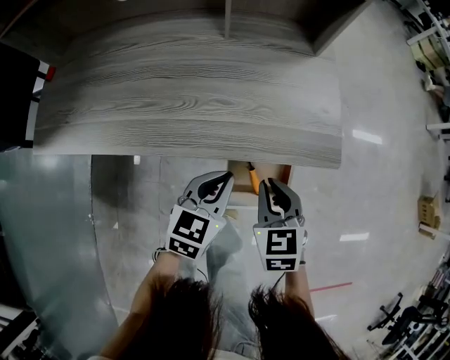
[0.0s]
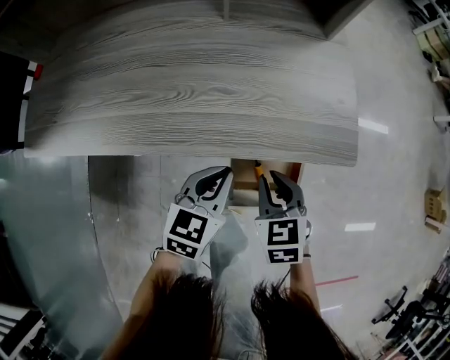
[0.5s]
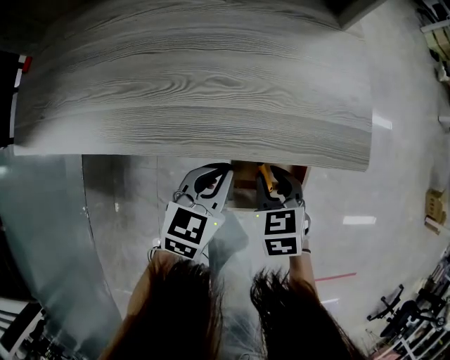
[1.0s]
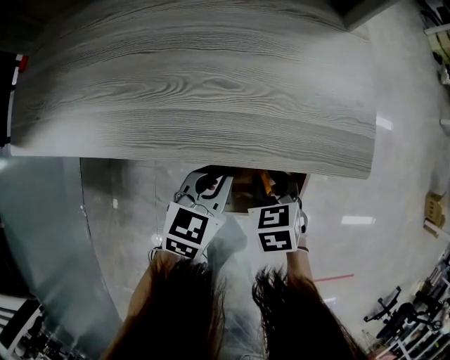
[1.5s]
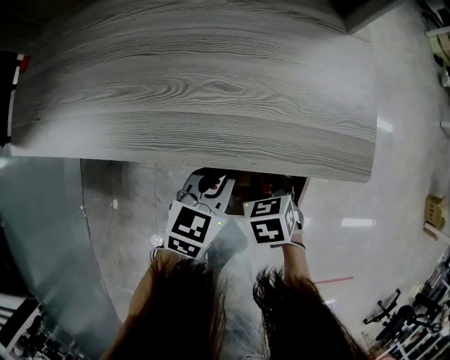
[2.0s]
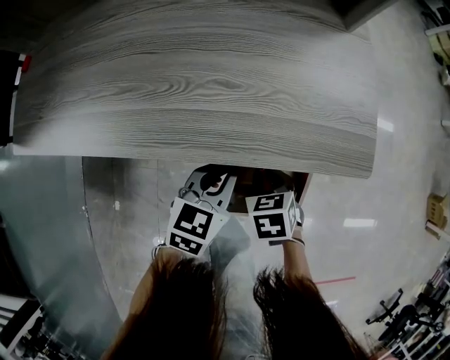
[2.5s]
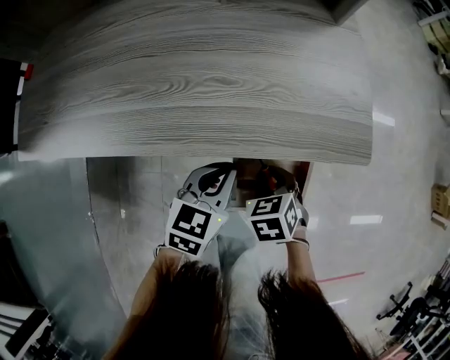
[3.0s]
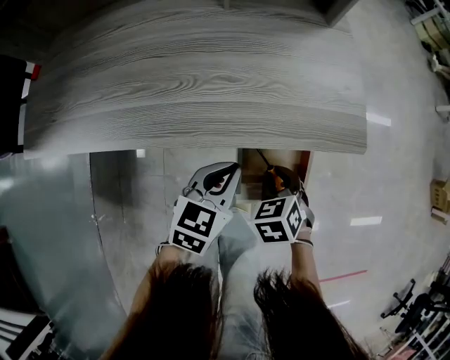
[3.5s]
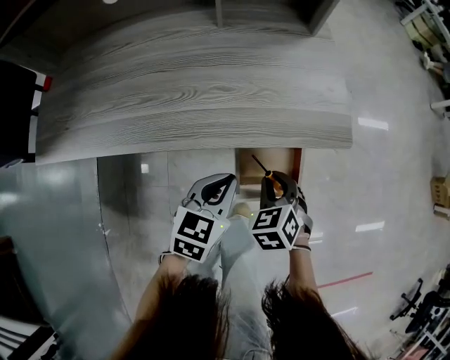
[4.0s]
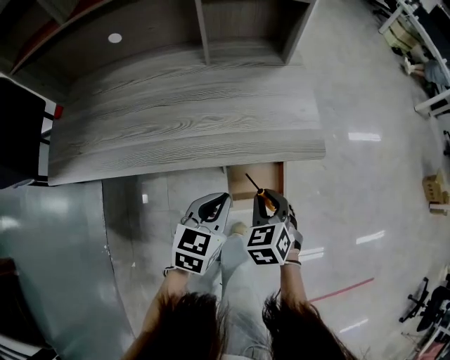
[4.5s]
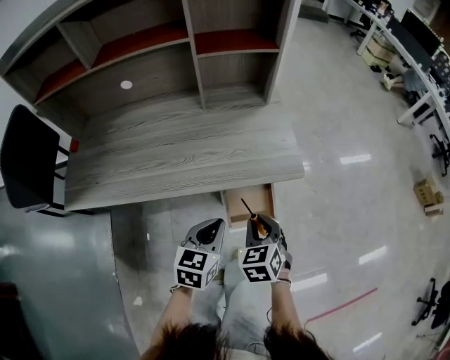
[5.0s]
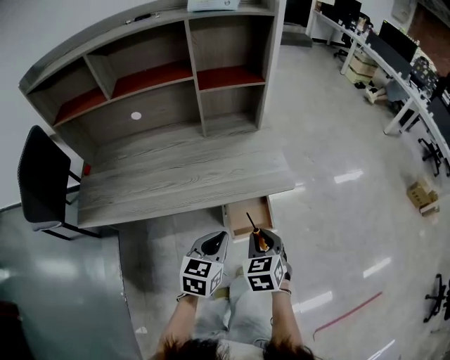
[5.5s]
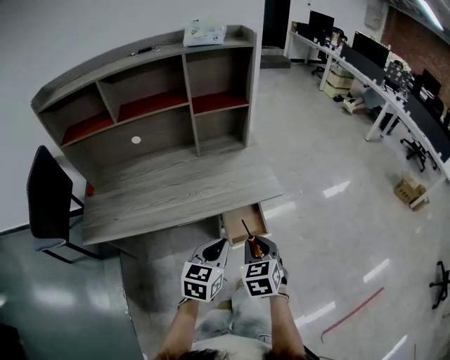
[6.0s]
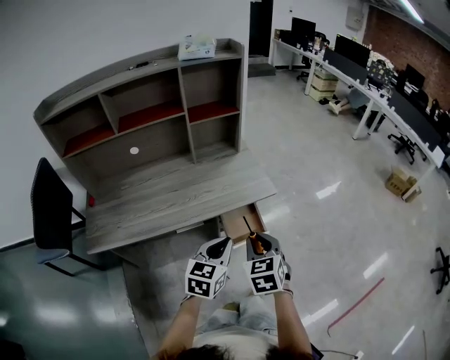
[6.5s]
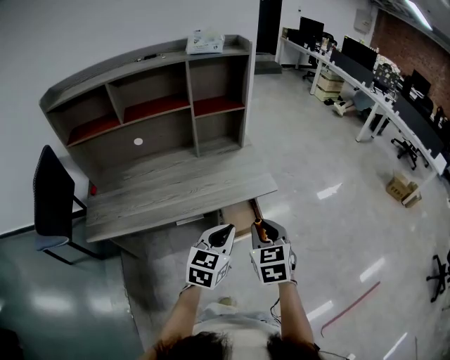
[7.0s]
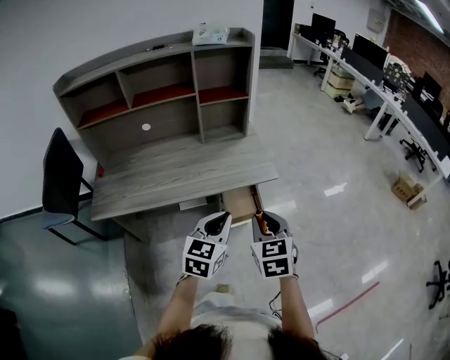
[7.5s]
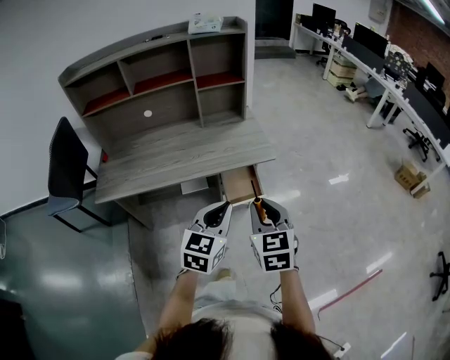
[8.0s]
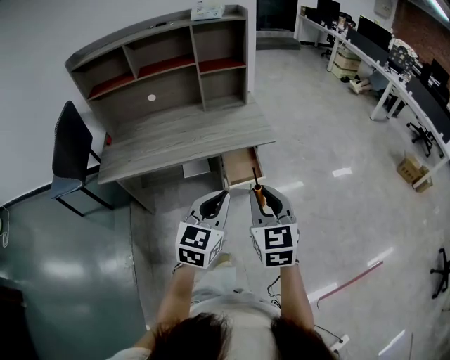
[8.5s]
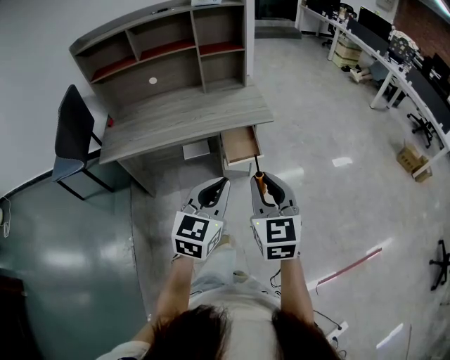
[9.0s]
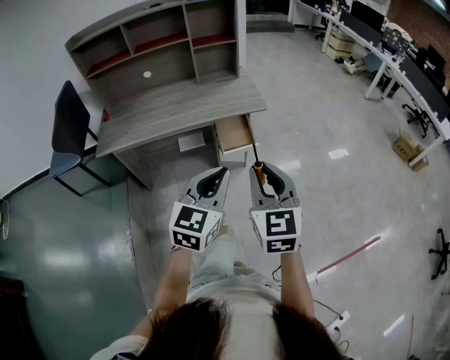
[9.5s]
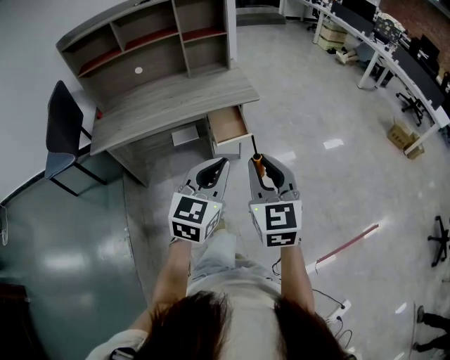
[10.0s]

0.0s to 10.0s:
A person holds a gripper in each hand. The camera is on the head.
0.0s to 2.0s: The left gripper moves downward, approximately 10 cm. The right gripper shifts roughly 15 cm downward, and swivels about 30 degrees.
2.0s to 4.0s: The right gripper heads upward, covering about 10 cm; the left gripper goes approximately 10 cm upward and backward.
4.0s to 6.0s: Both grippers travel together upward and backward, some 30 cm. The right gripper turns by some 30 degrees.
6.0s to 8.0s: The right gripper moves upward, backward and to the right, approximately 20 cm. The left gripper shifts some 15 cm backward, upward and to the right.
8.0s to 10.0s: Both grippers move backward, roughly 15 cm.

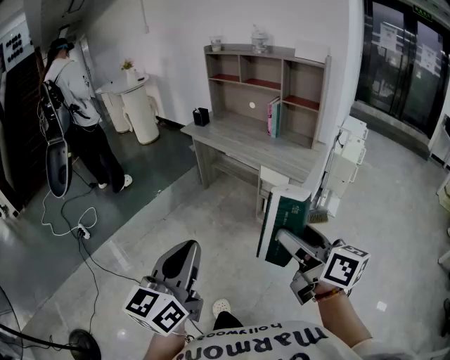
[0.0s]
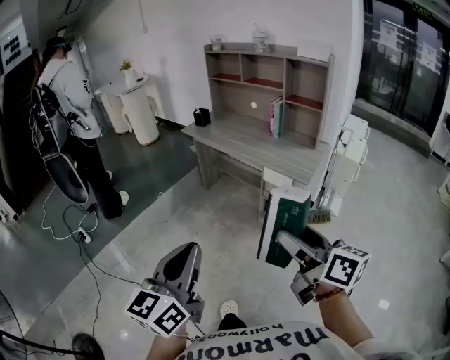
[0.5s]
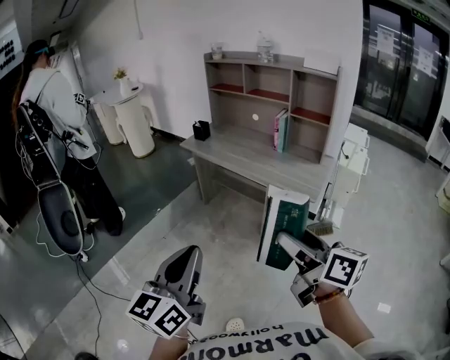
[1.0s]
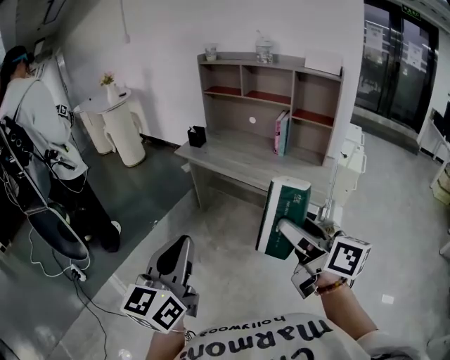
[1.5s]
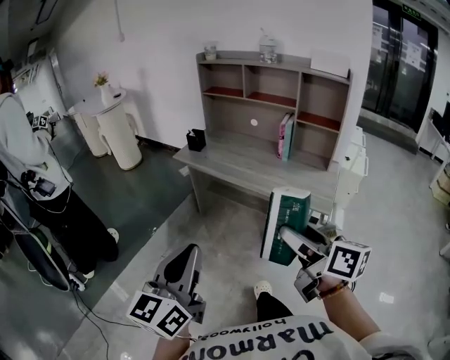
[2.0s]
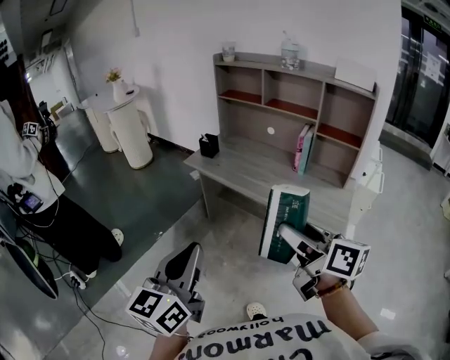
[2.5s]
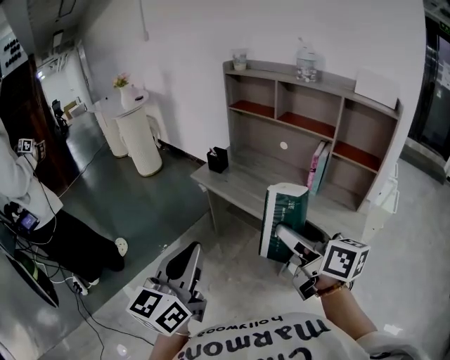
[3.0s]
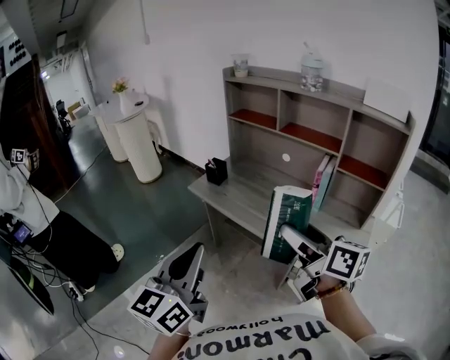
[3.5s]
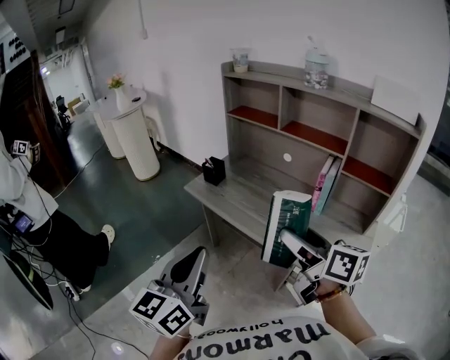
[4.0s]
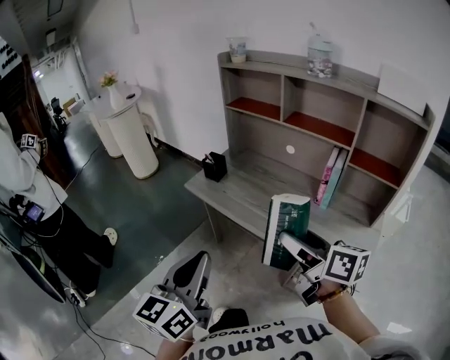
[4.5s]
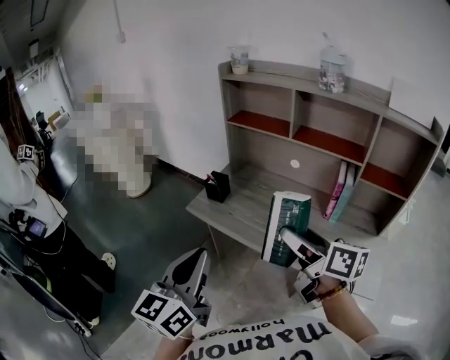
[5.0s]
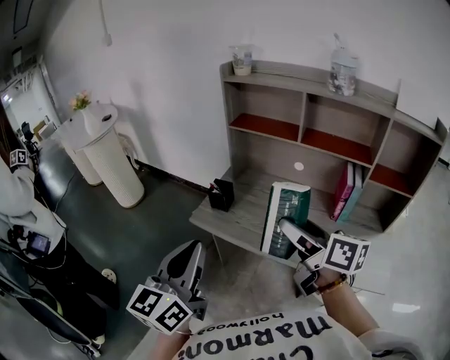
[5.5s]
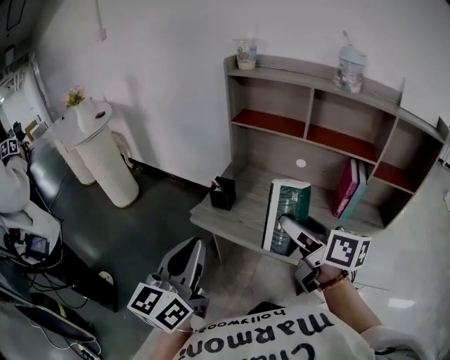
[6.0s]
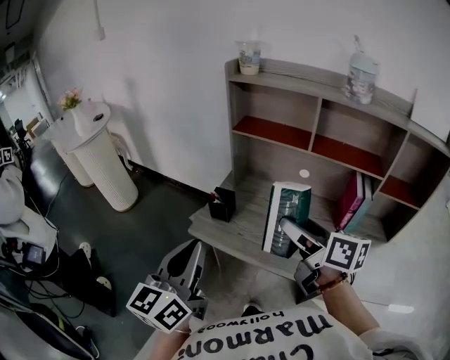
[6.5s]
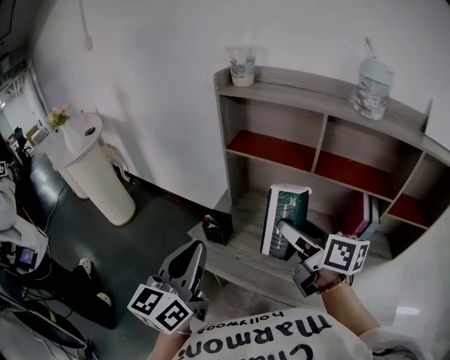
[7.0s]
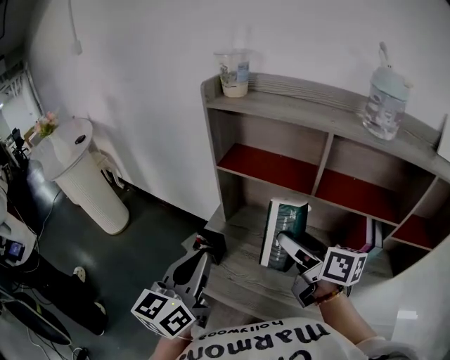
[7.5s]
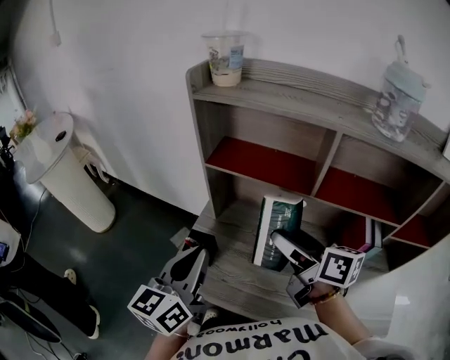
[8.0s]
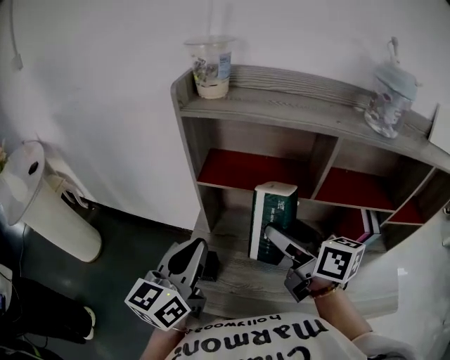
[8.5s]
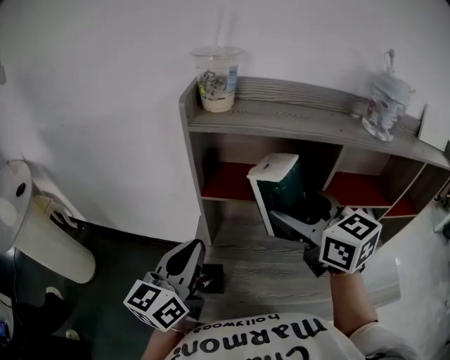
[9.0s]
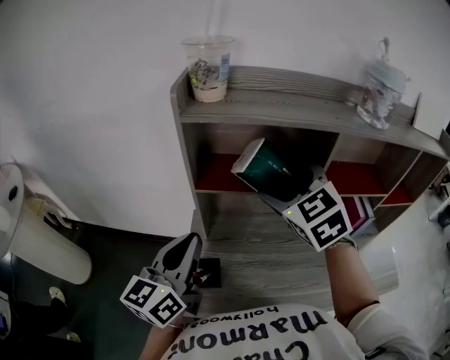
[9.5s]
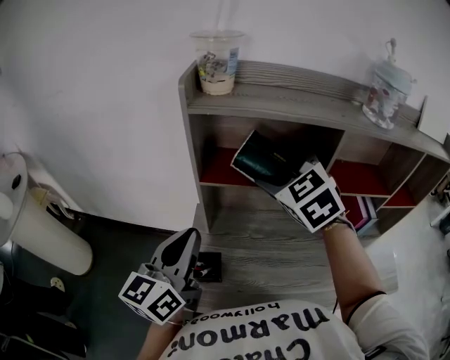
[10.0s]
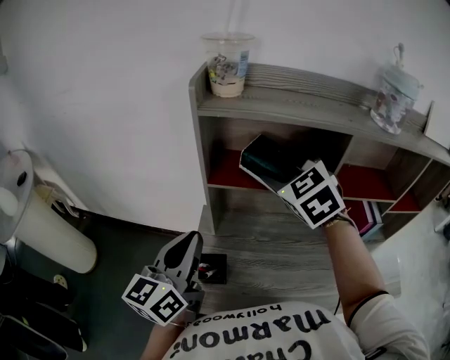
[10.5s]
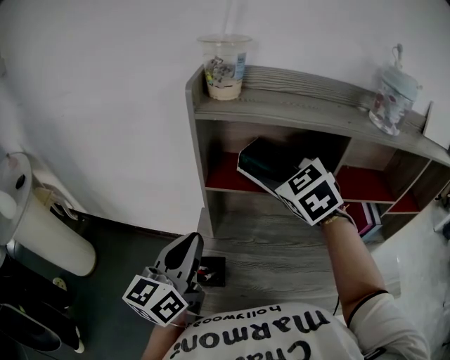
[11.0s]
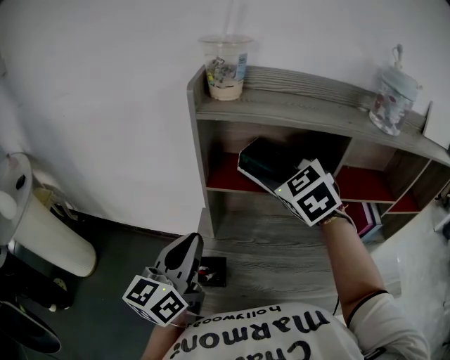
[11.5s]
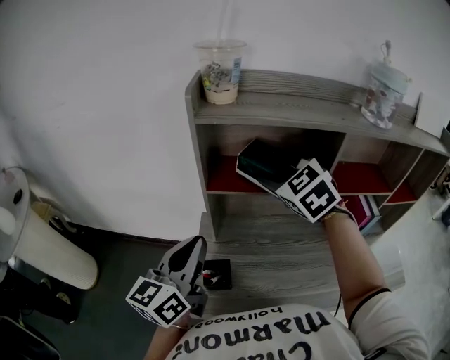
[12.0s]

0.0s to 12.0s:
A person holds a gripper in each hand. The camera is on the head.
0.0s to 2.0s: The grippers both shift forward and to the left by about 30 cm.
2.0s to 4.0s: The two grippers go some 30 cm forward.
4.0s to 6.0s: Both grippers move forward and to the left, roughly 25 cm.
6.0s to 8.0s: Both grippers move forward, about 25 cm.
8.0s to 10.0s: The left gripper changes place by roughly 10 cm. Meanwhile the right gripper moves about 15 cm, and twists some 70 degrees counterclockwise, seen from behind.
10.0s to 12.0s: The grippers move only a little.

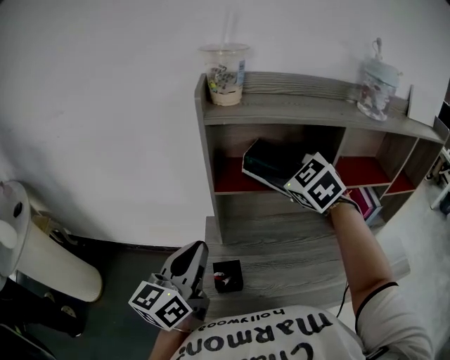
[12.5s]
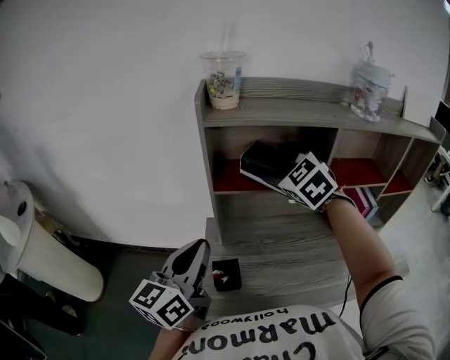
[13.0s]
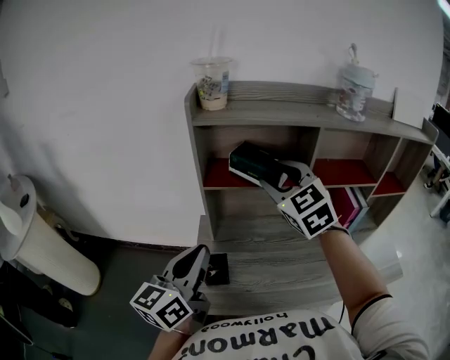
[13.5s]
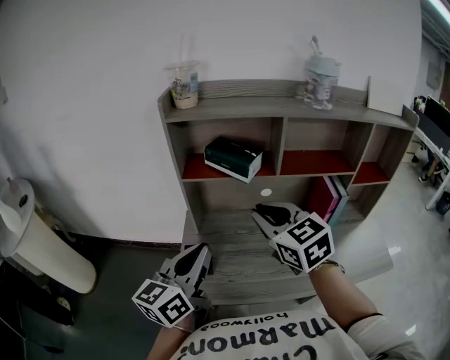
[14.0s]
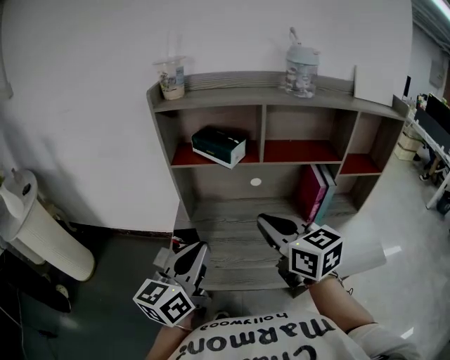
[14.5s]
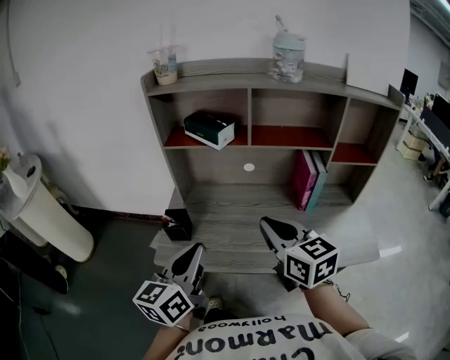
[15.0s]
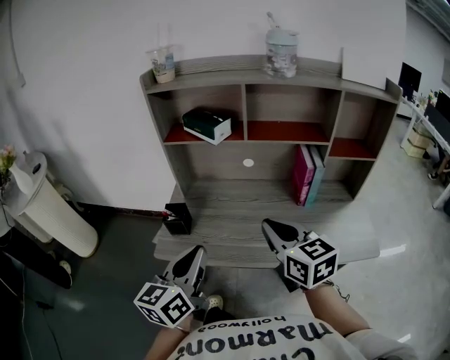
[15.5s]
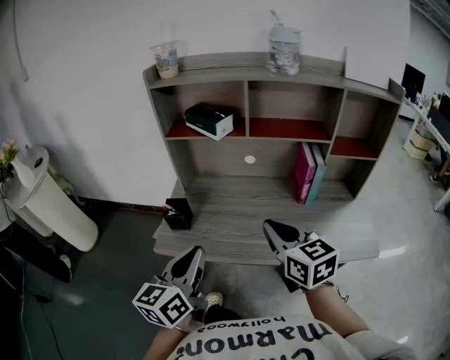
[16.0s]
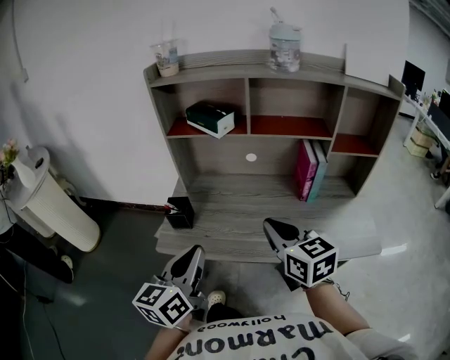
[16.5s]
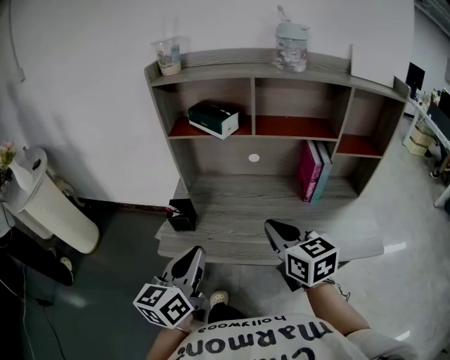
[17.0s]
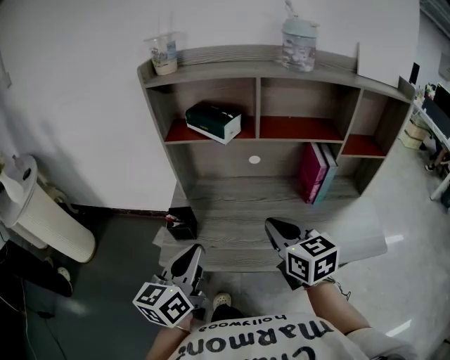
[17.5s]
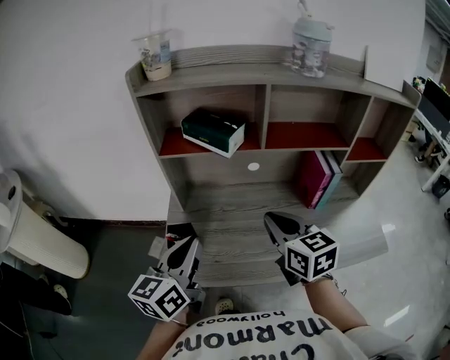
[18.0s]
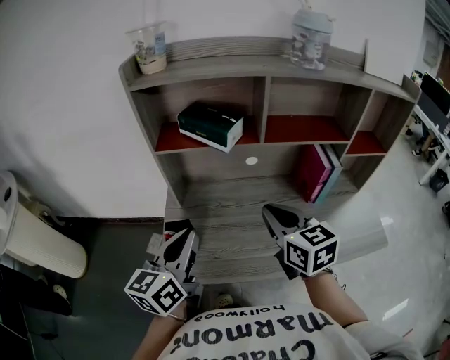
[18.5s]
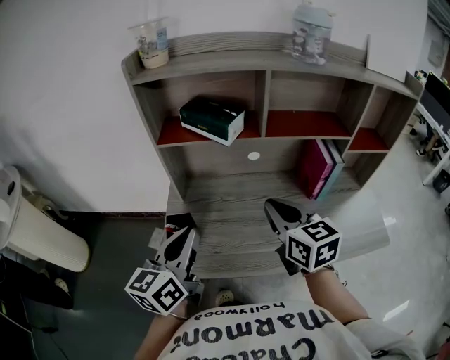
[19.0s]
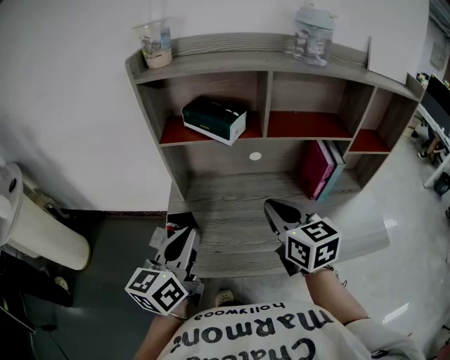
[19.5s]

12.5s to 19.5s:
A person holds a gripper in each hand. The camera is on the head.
12.5s to 14.5s: The left gripper travels to the right and backward by approximately 20 cm. The right gripper travels backward and to the right by about 30 cm, twists approximately 40 degrees clockwise, seen from behind, and closes up.
14.5s to 16.0s: The left gripper travels backward by some 10 cm, while the right gripper shifts roughly 15 cm backward, to the right and downward.
16.0s to 17.5s: The two grippers go approximately 5 cm forward.
17.5s to 19.5s: The grippers both shift forward by about 5 cm.
